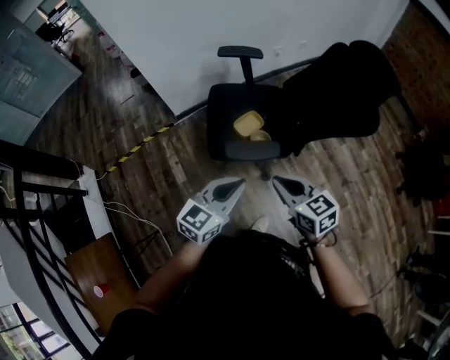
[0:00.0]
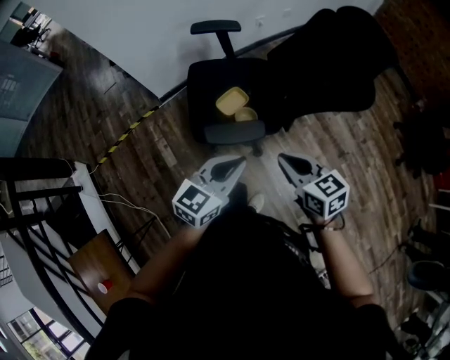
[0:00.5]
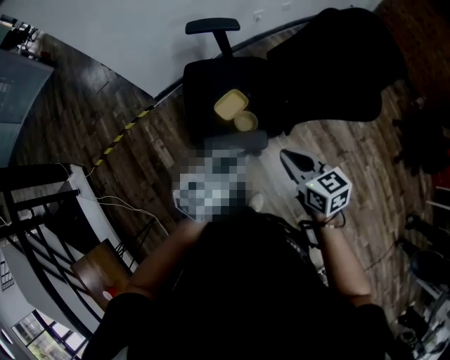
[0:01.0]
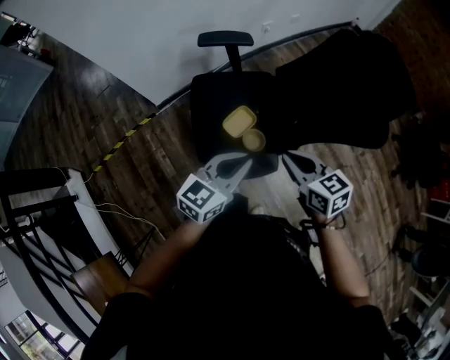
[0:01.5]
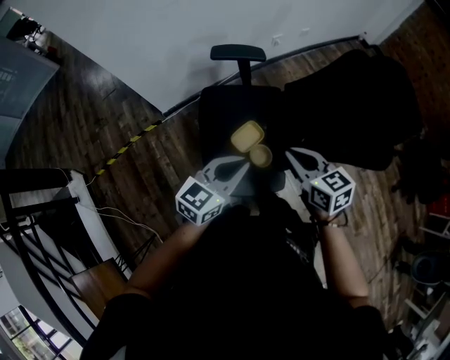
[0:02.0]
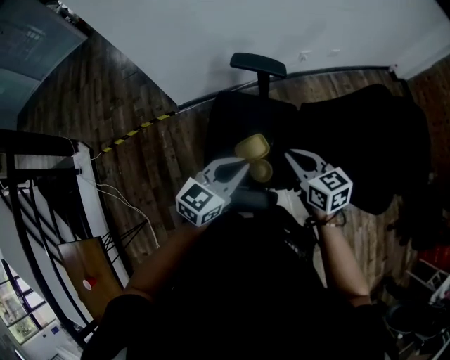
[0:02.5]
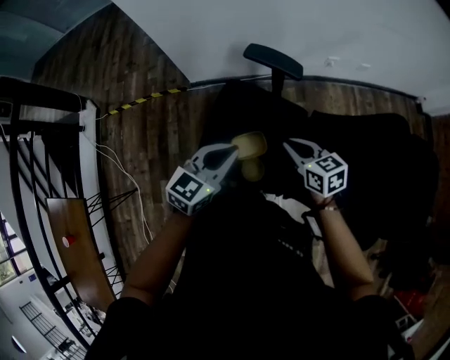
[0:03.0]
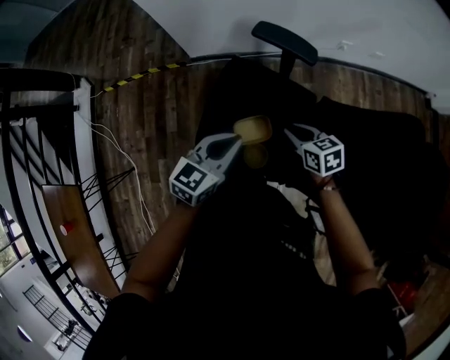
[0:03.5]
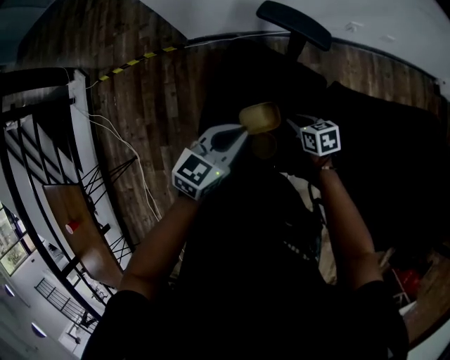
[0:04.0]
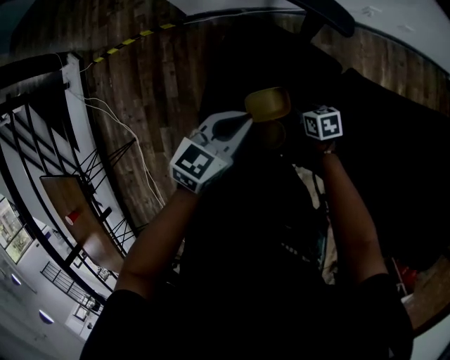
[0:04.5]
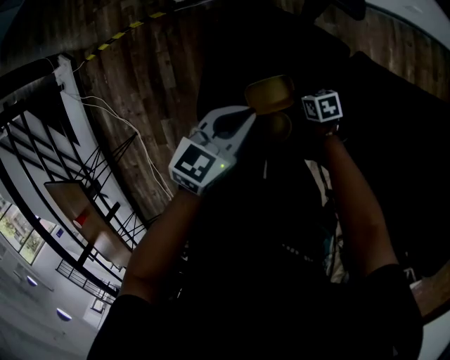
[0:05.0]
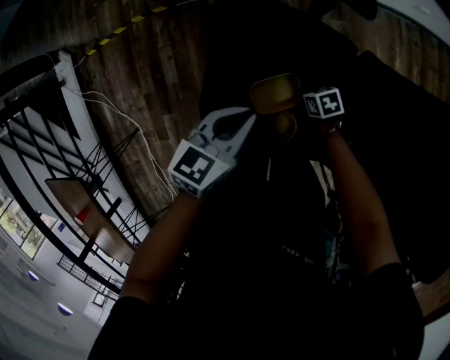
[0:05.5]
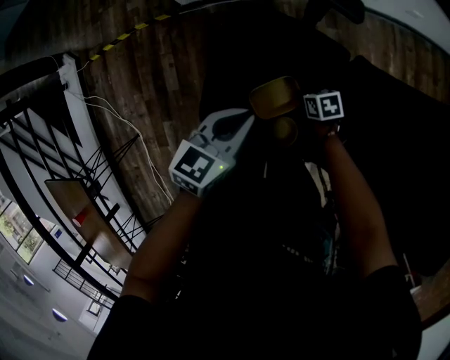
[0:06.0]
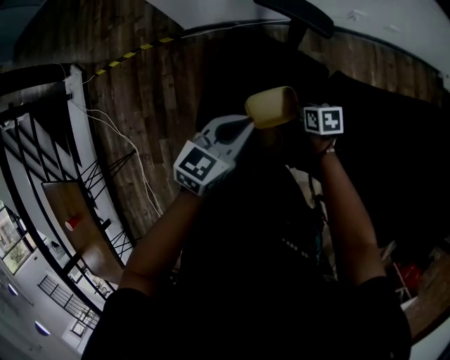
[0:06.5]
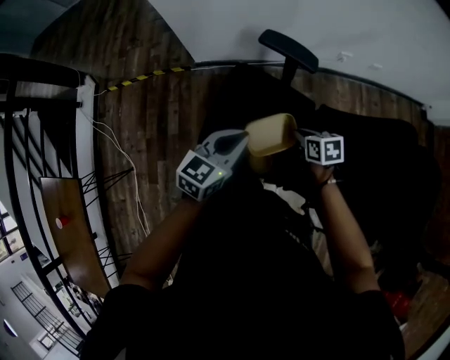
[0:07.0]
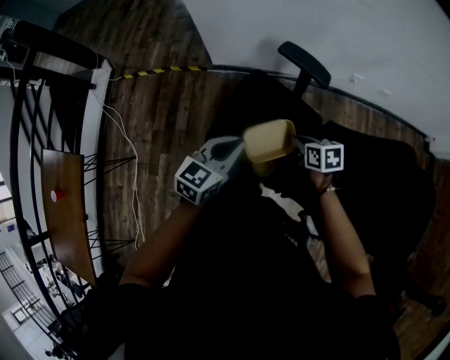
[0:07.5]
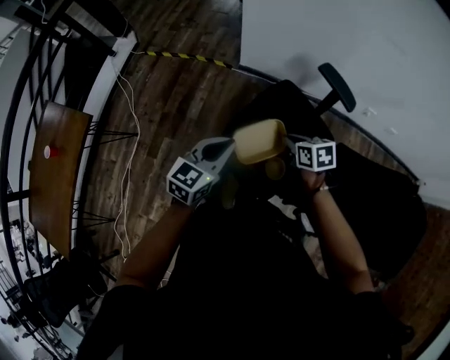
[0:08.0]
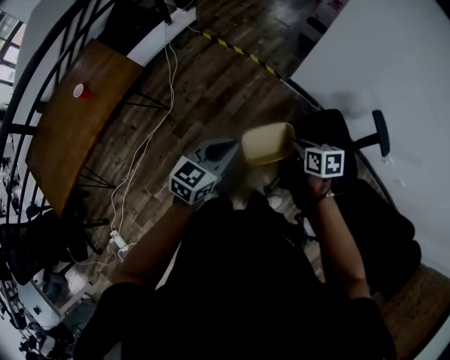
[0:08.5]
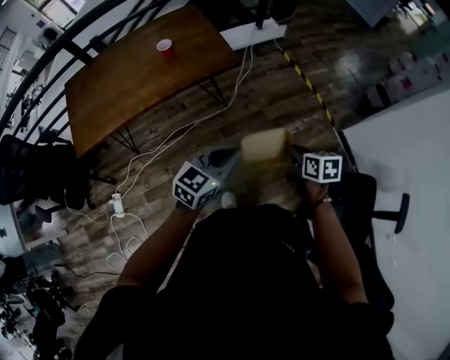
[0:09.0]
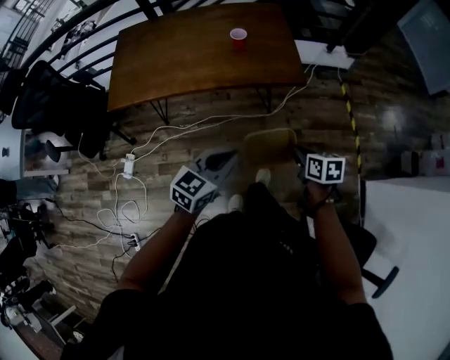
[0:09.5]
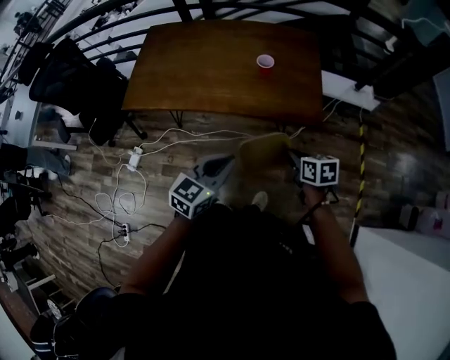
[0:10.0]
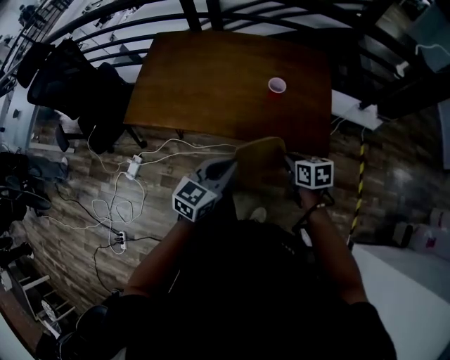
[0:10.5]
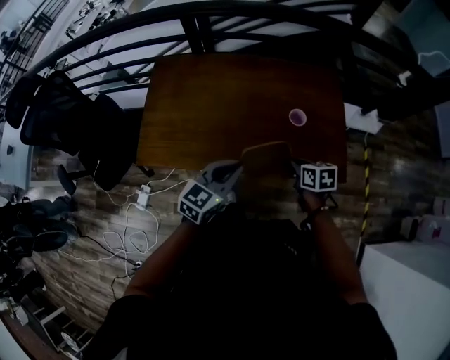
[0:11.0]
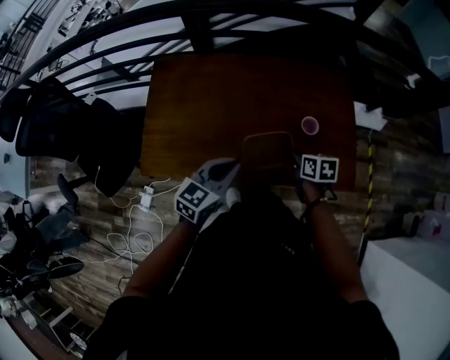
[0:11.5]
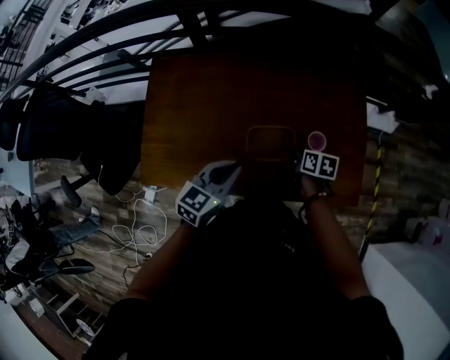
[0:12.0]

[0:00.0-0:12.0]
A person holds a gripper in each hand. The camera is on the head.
0:00.0 to 0:02.0: The two grippers go about 25 cm forward.
0:02.0 to 0:04.0: The right gripper travels downward by some 30 cm, and turns by about 40 degrees, while the left gripper ends up some 20 cm from where it was, and swivels approximately 30 degrees.
0:04.0 to 0:06.0: The right gripper heads downward, covering roughly 15 cm. Meanwhile the left gripper moves downward, approximately 5 cm.
0:06.0 to 0:08.0: The left gripper travels upward, to the left and backward by about 25 cm, and turns by some 30 degrees; the right gripper heads upward and to the left, covering roughly 35 cm, and swivels approximately 30 degrees.
0:08.0 to 0:10.0: The pair of grippers is taken approximately 80 cm. The right gripper swivels some 70 degrees; the left gripper swivels some 80 degrees.
0:10.0 to 0:12.0: Both grippers are carried forward and to the left, some 40 cm.

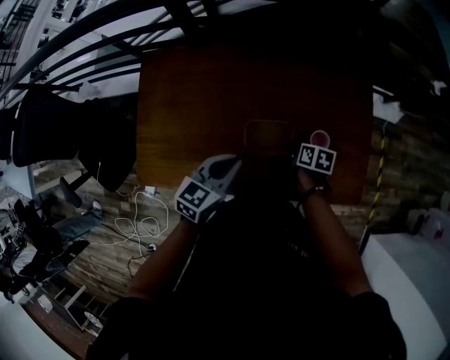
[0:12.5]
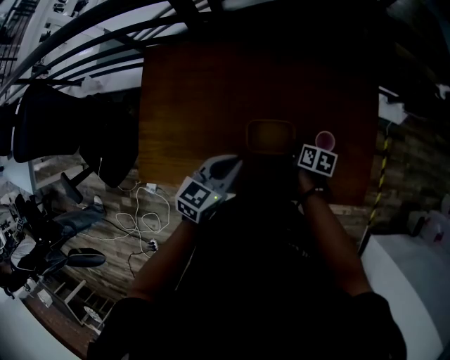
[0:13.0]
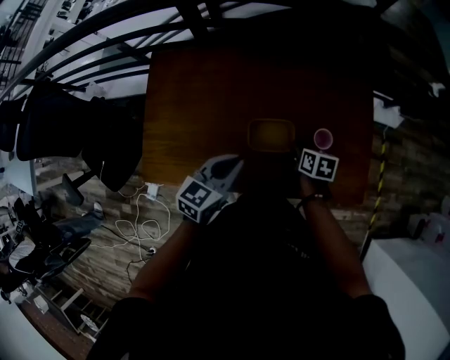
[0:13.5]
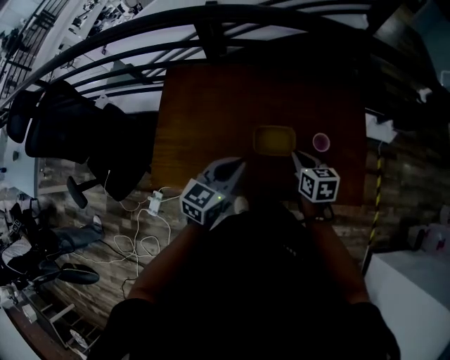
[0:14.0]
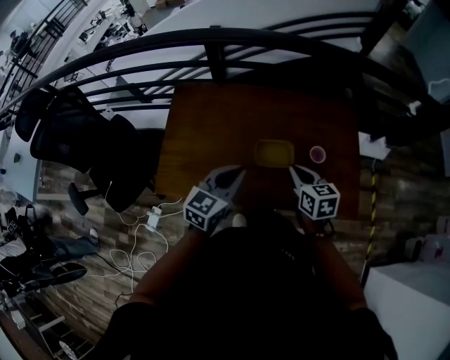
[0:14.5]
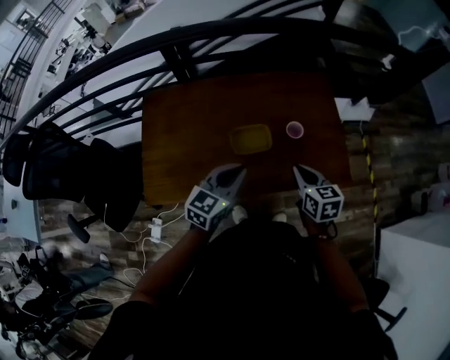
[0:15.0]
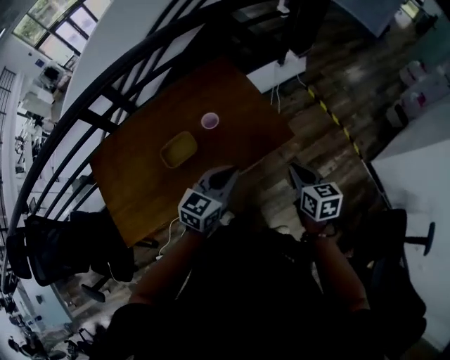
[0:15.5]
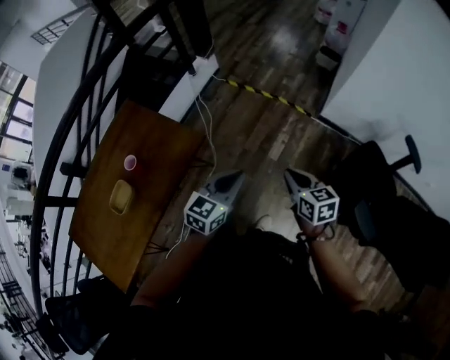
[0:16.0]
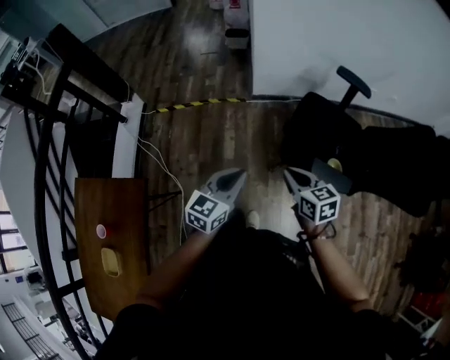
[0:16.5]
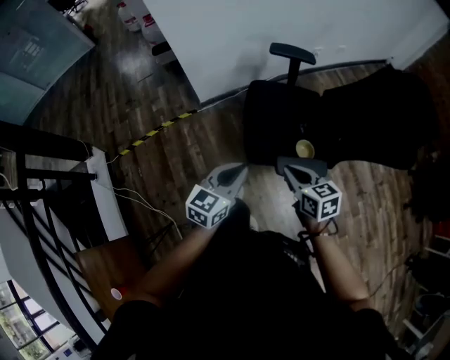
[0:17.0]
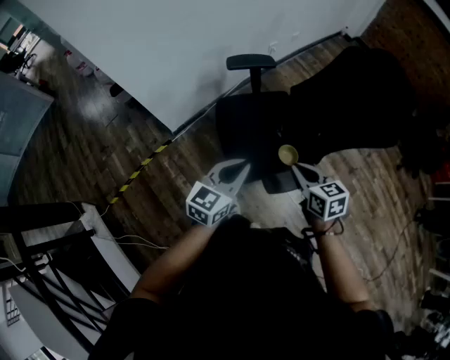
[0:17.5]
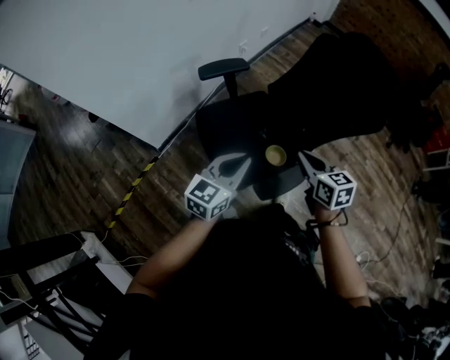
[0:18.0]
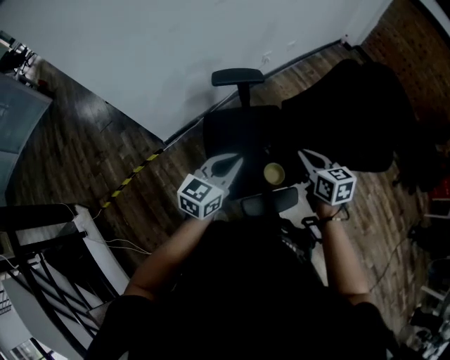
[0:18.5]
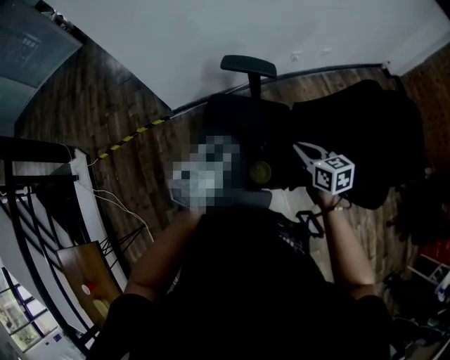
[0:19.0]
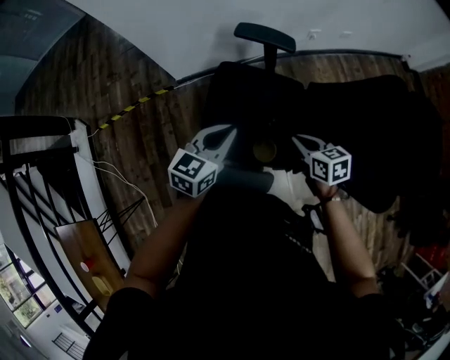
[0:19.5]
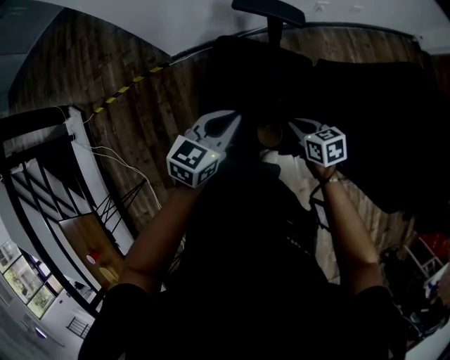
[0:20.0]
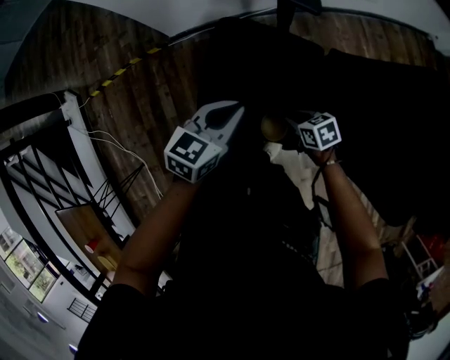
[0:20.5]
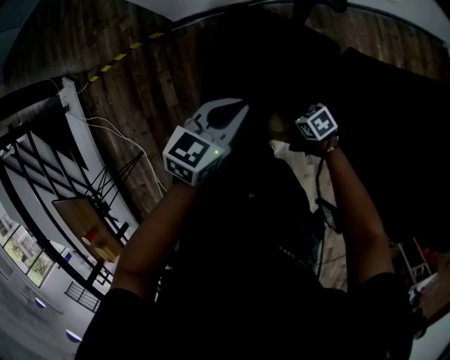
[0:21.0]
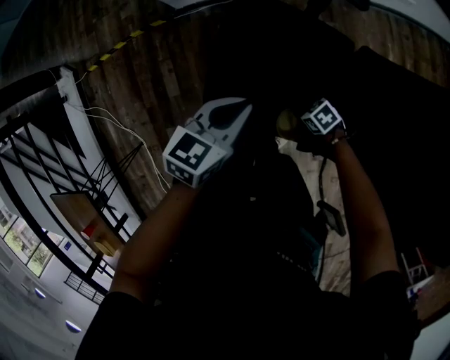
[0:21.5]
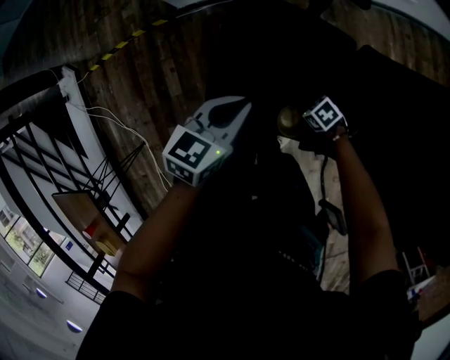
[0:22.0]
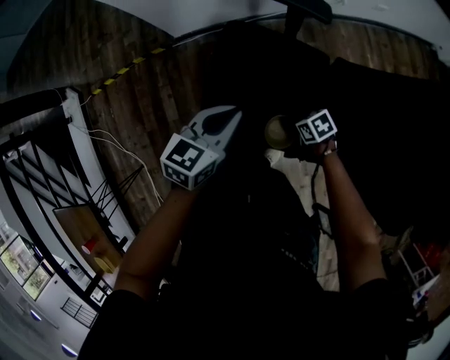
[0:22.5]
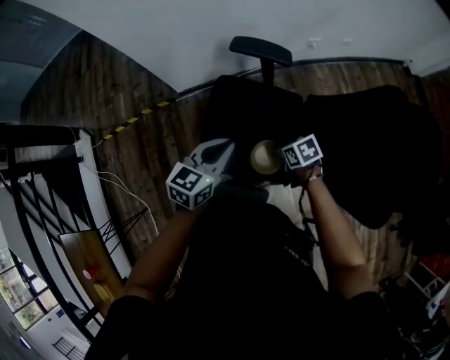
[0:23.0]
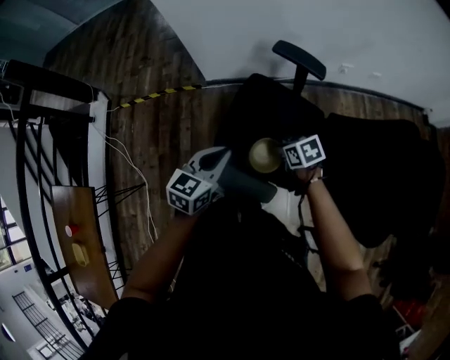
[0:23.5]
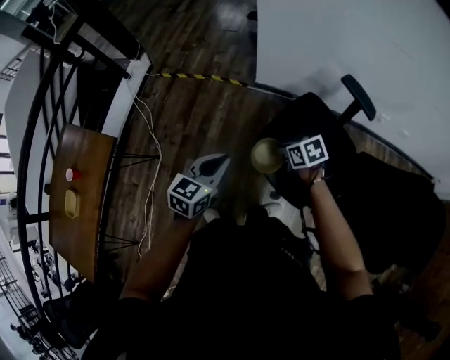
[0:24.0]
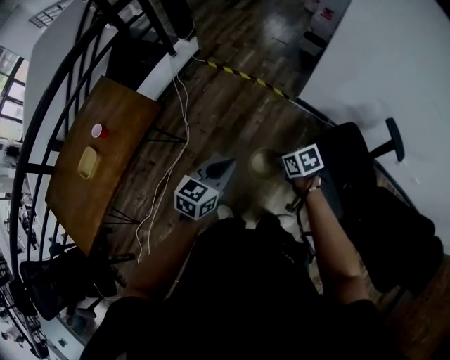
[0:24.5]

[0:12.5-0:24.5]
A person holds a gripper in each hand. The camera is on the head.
0:12.5 to 0:14.5: The right gripper heads upward and backward, covering about 25 cm, and changes its angle by some 40 degrees. The left gripper travels upward and backward by some 10 cm.
0:14.5 to 0:16.5: The pair of grippers is taken approximately 80 cm. The right gripper swivels about 90 degrees. Meanwhile the left gripper changes its angle by roughly 90 degrees.
0:16.5 to 0:18.5: Both grippers are carried some 40 cm. The left gripper turns by roughly 40 degrees, while the right gripper rotates about 40 degrees.
0:18.5 to 0:20.5: The right gripper is displaced downward by roughly 30 cm, and changes its angle by about 50 degrees, while the left gripper shifts approximately 15 cm downward, and turns by roughly 30 degrees.
0:20.5 to 0:22.5: The right gripper travels downward and back again, approximately 15 cm each way.
0:22.5 to 0:24.5: Both grippers are carried some 50 cm. The left gripper turns by approximately 50 degrees. The right gripper rotates roughly 40 degrees.

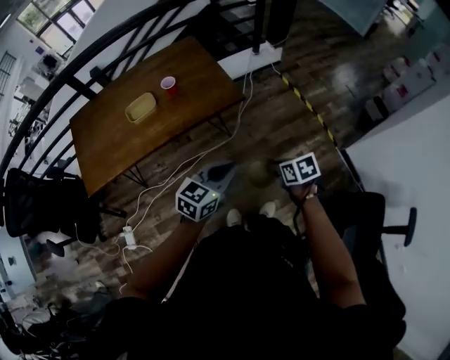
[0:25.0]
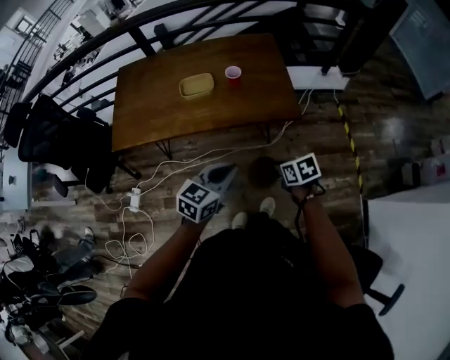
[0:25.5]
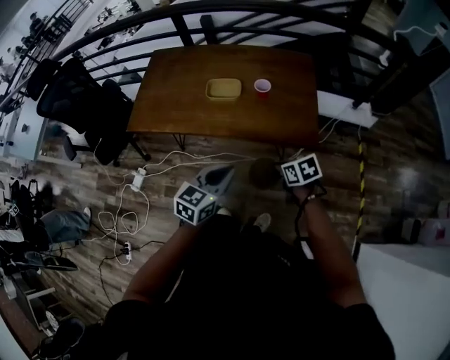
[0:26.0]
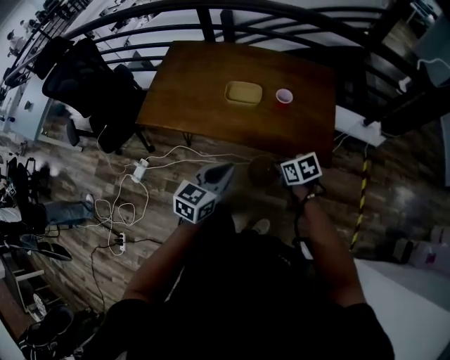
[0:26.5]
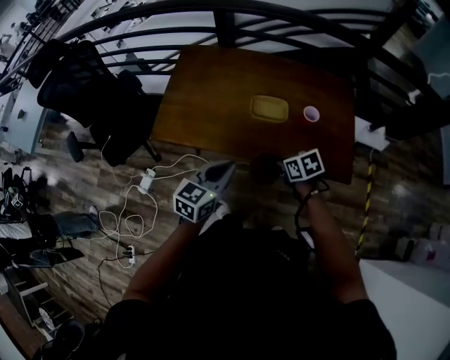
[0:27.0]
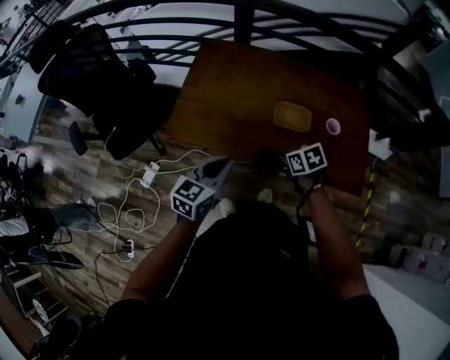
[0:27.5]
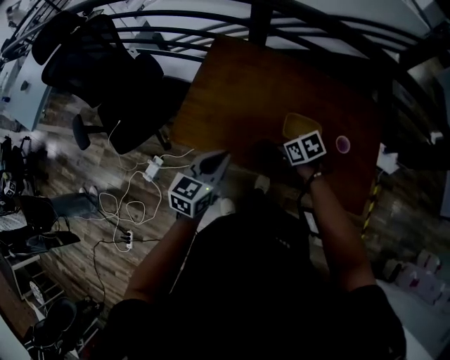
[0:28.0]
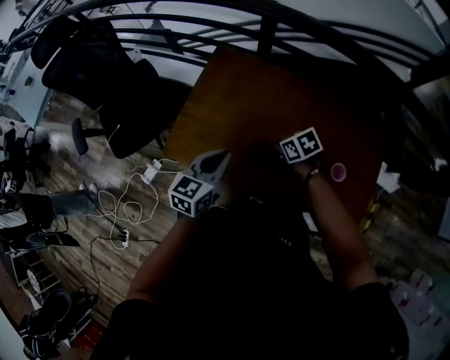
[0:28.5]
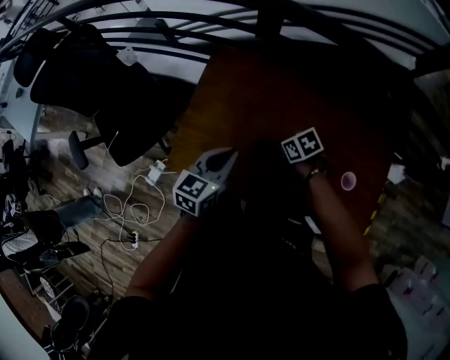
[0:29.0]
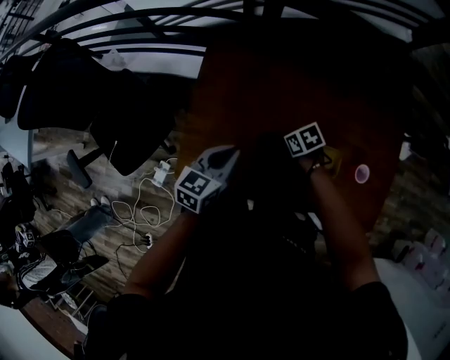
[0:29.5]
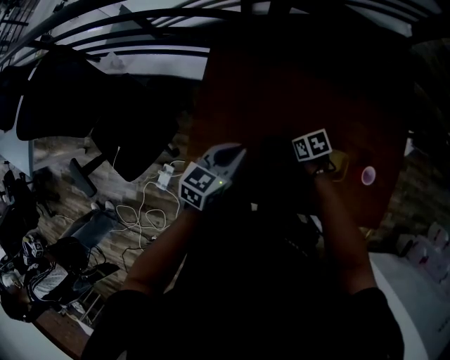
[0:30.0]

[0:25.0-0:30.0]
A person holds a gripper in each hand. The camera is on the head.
0:25.0 to 0:27.5: The pair of grippers is taken approximately 60 cm. The left gripper rotates approximately 50 degrees. The right gripper swivels some 50 degrees.
0:27.5 to 0:30.0: The right gripper ends up approximately 30 cm from where it was, while the left gripper ends up about 35 cm from where it was.
